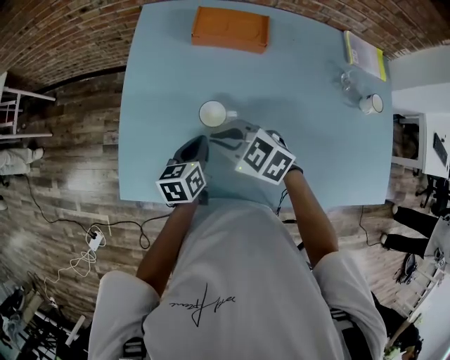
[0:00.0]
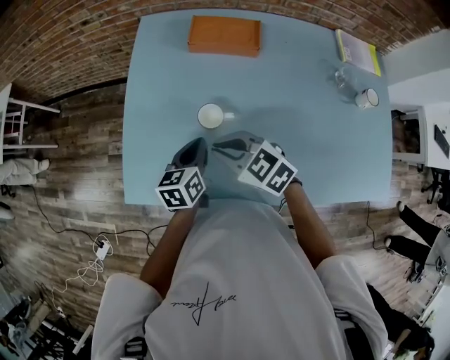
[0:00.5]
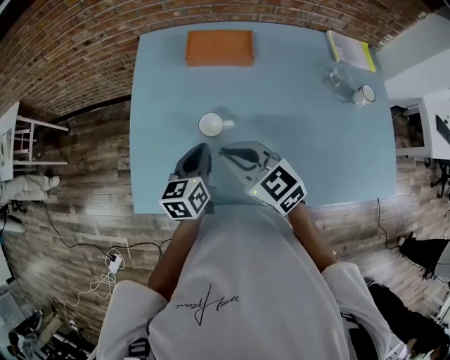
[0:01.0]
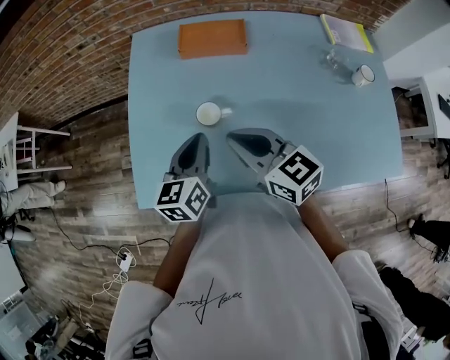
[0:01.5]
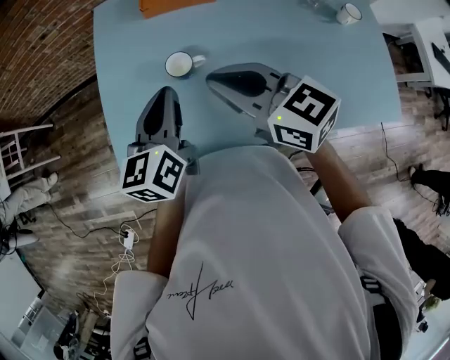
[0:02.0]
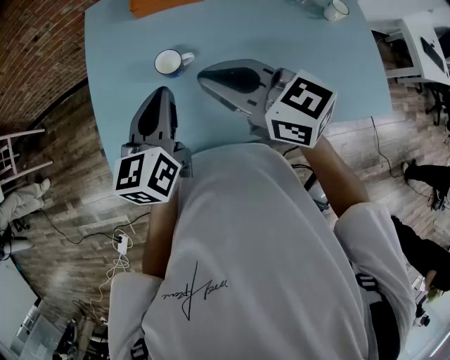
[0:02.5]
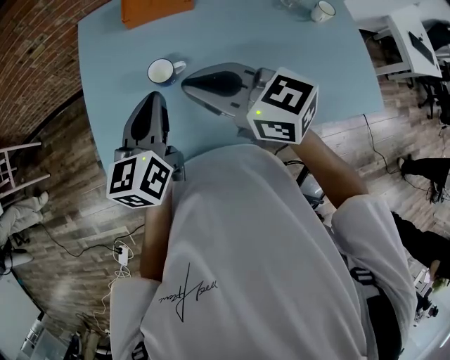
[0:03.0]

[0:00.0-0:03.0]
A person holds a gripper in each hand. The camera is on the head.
0:00.0 to 0:01.5: Both grippers travel together upward, approximately 10 cm. The right gripper rotates roughly 40 degrees.
0:01.5 to 0:03.0: The two grippers go about 5 cm upward.

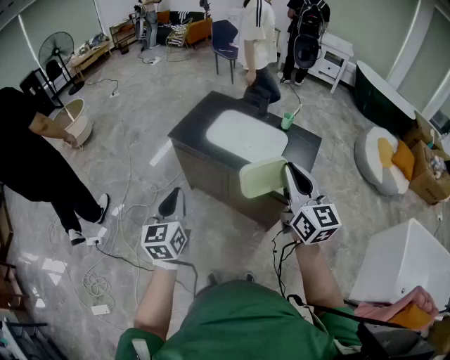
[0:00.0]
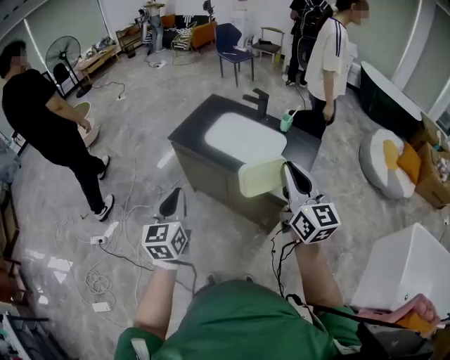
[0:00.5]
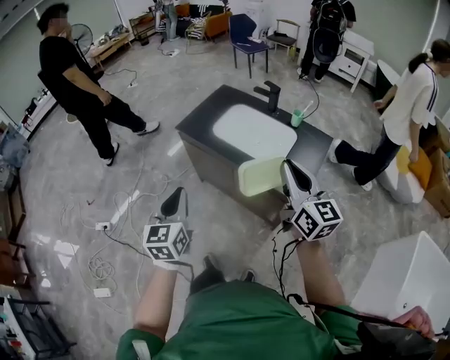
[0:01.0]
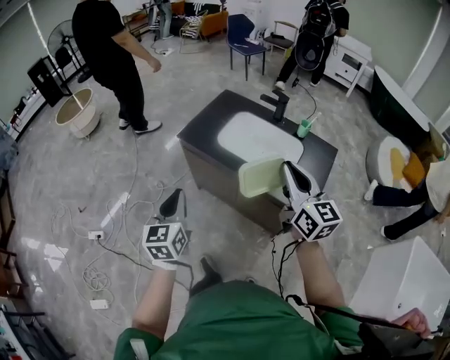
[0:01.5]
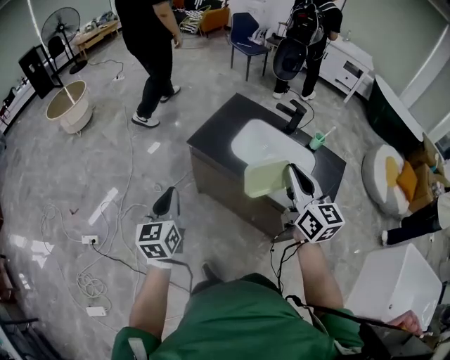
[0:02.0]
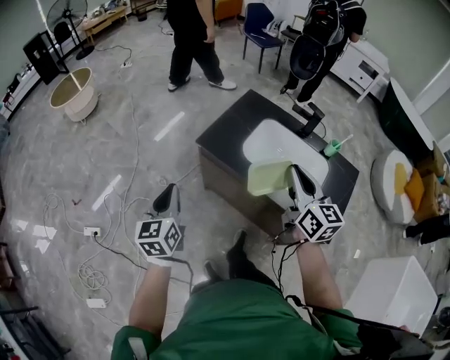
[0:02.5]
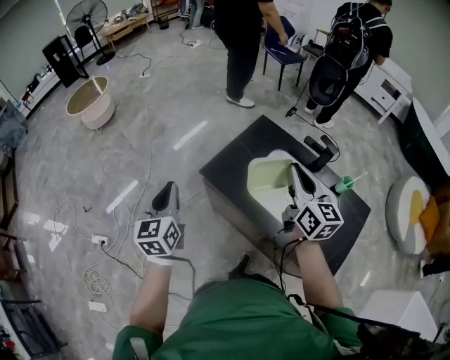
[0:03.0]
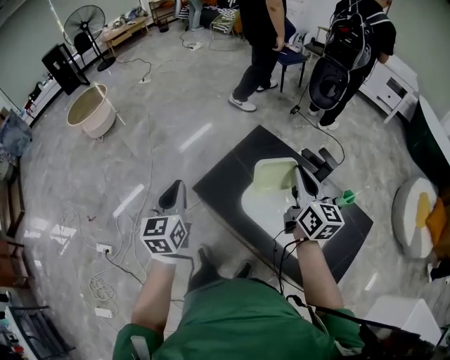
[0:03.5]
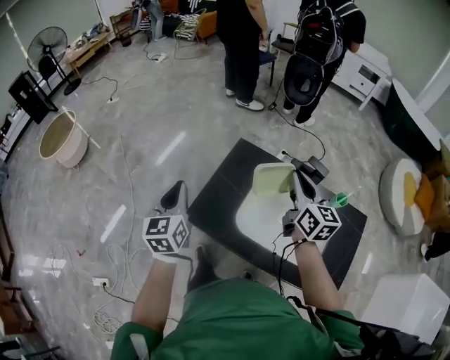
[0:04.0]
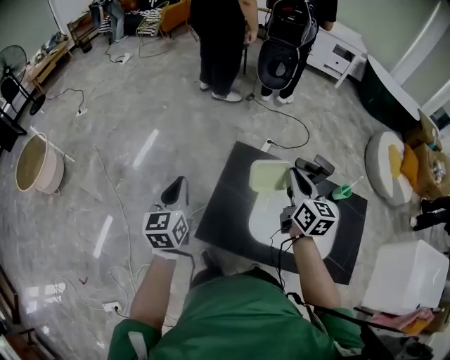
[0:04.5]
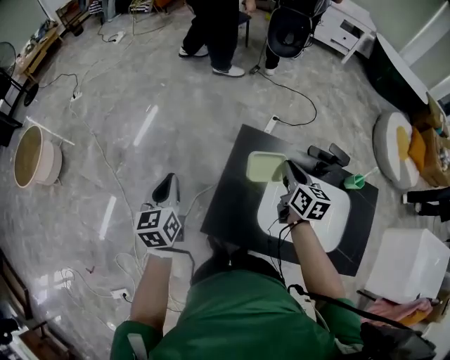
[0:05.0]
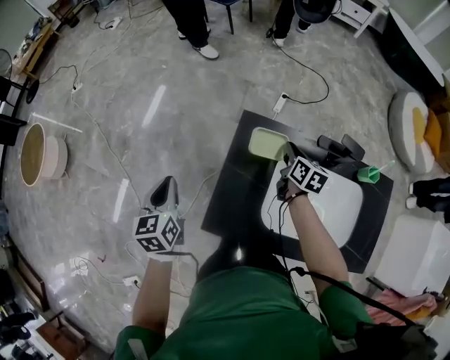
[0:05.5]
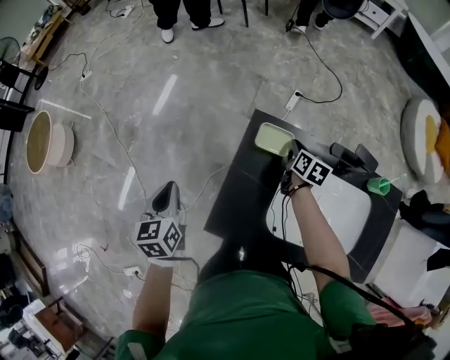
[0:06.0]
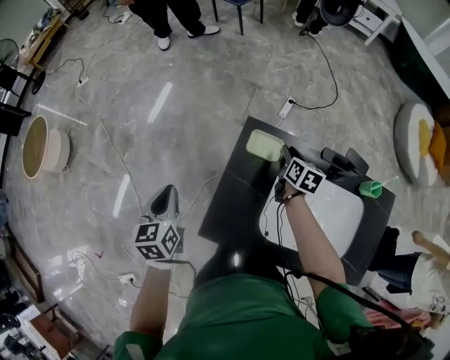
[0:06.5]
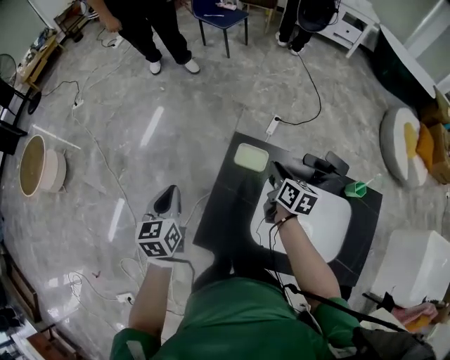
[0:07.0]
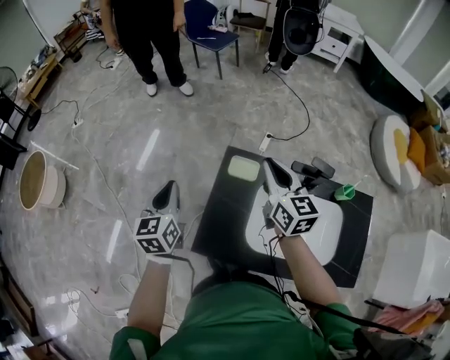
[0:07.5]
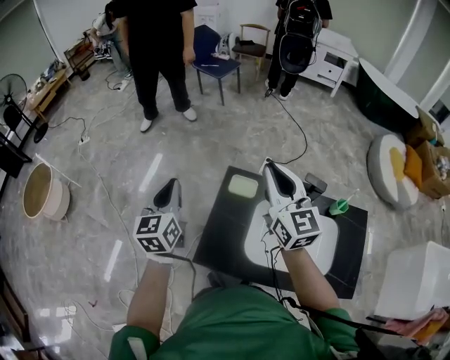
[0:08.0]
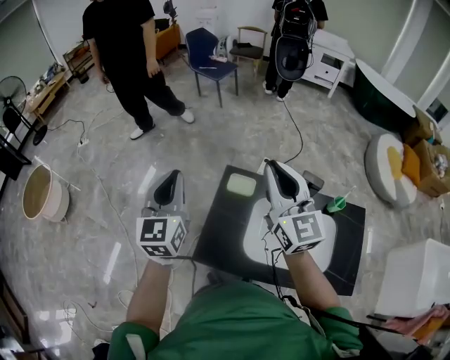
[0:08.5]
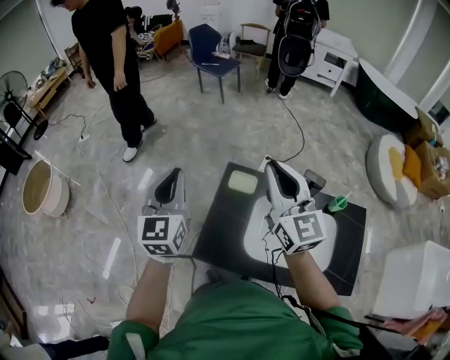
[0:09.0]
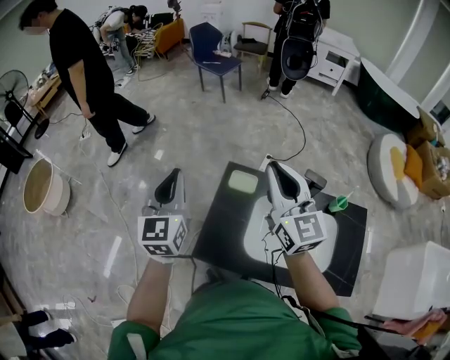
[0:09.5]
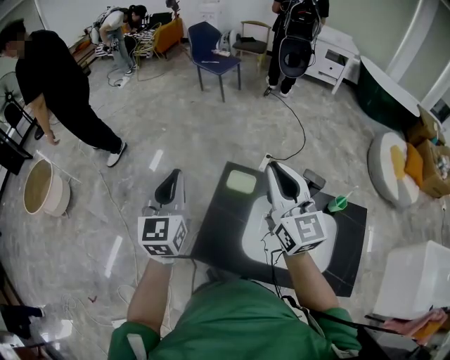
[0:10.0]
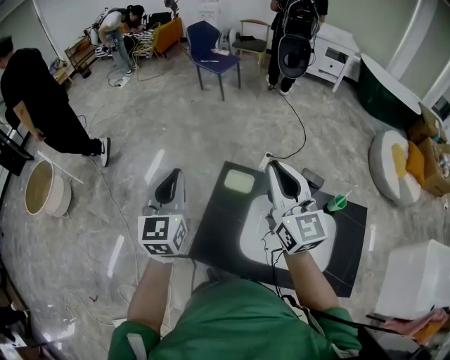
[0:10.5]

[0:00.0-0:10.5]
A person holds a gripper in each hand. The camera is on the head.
0:00.0 to 0:02.0: Both grippers move forward and to the left, approximately 25 cm.
0:02.0 to 0:04.0: The two grippers travel together, forward, about 50 cm.
0:04.0 to 0:06.5: The right gripper shifts some 40 cm downward and forward, and angles its fingers downward, by some 30 degrees. The left gripper goes some 30 cm forward, downward and to the left, and changes its angle by approximately 20 degrees.
0:06.5 to 0:08.5: The left gripper is displaced upward by about 25 cm, and tips its fingers upward by some 30 degrees. Meanwhile the right gripper moves upward and backward, about 50 cm, and angles its fingers upward, by about 40 degrees.
0:08.5 to 0:10.5: The grippers move only a little.

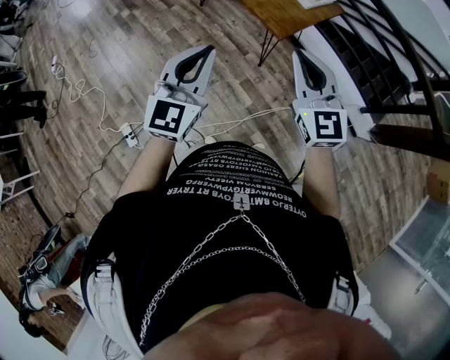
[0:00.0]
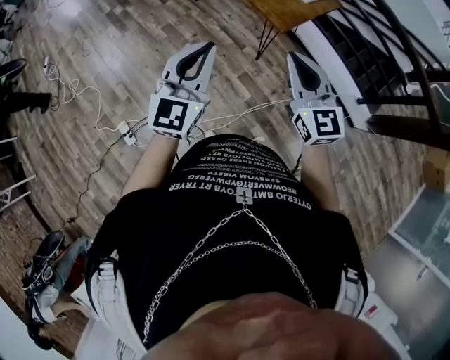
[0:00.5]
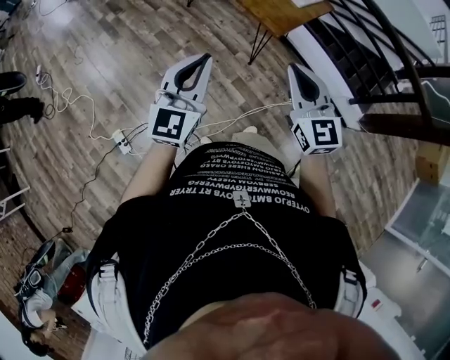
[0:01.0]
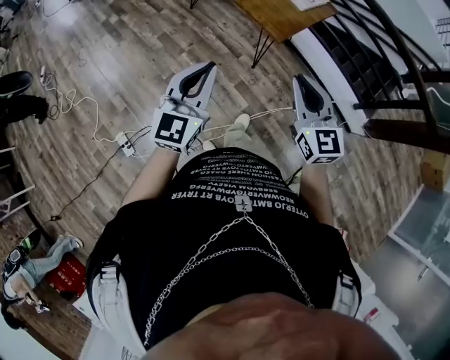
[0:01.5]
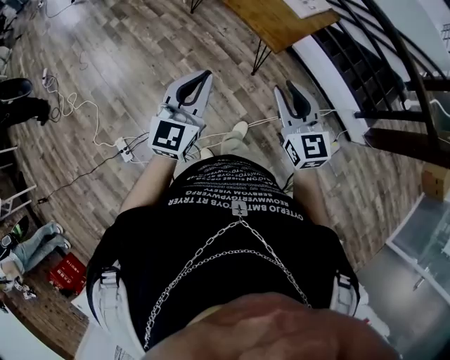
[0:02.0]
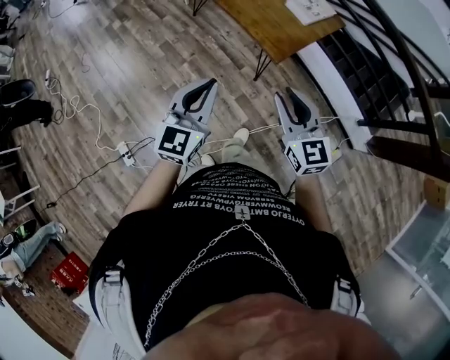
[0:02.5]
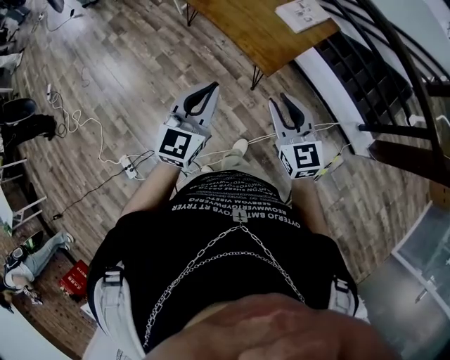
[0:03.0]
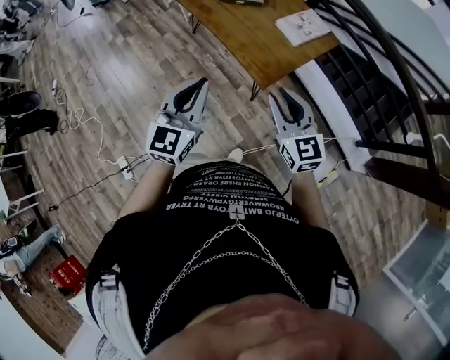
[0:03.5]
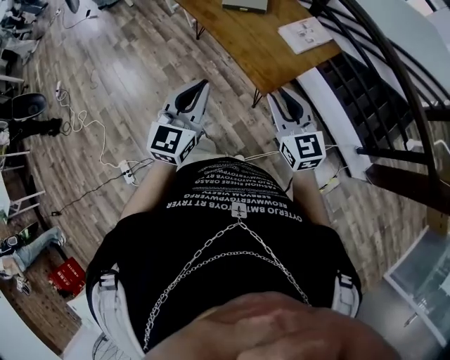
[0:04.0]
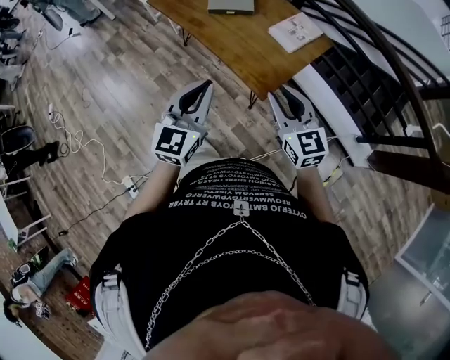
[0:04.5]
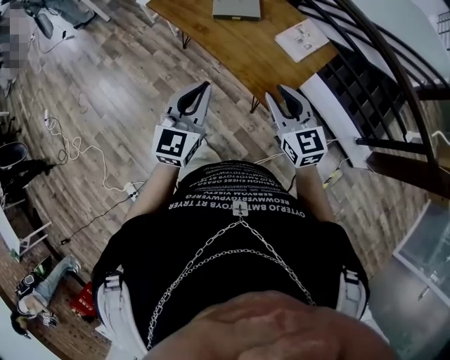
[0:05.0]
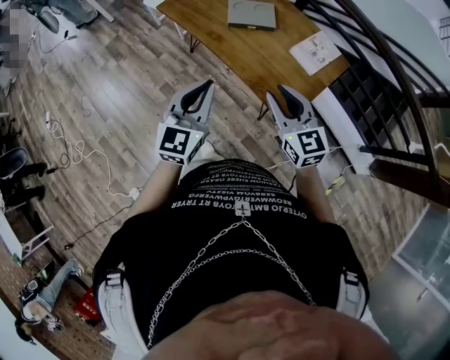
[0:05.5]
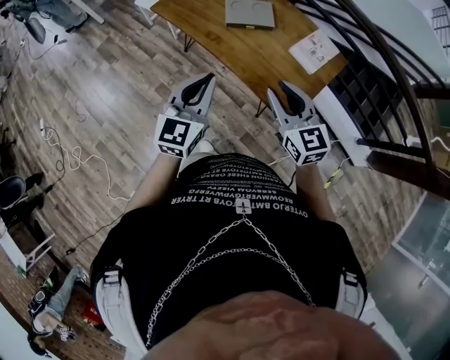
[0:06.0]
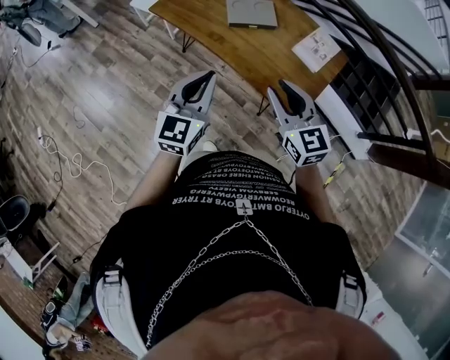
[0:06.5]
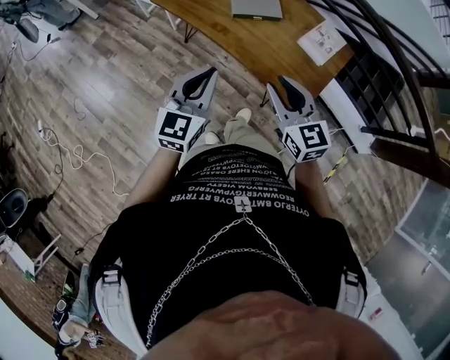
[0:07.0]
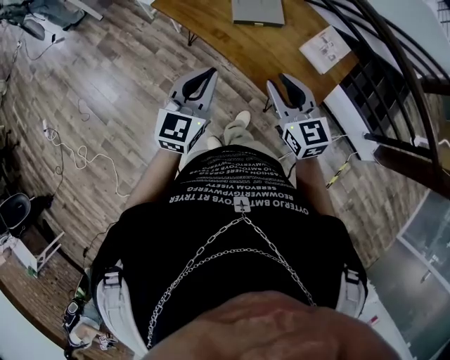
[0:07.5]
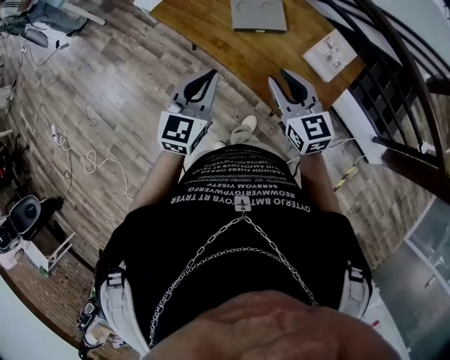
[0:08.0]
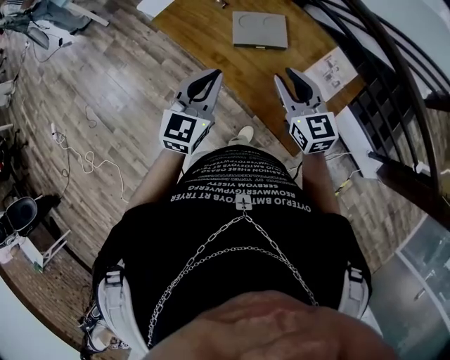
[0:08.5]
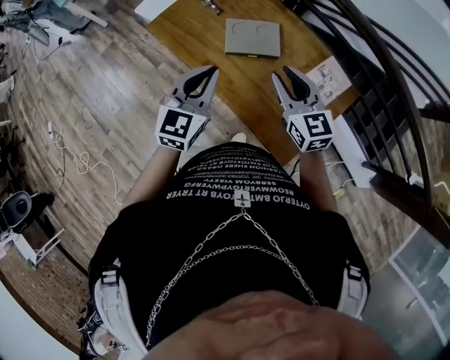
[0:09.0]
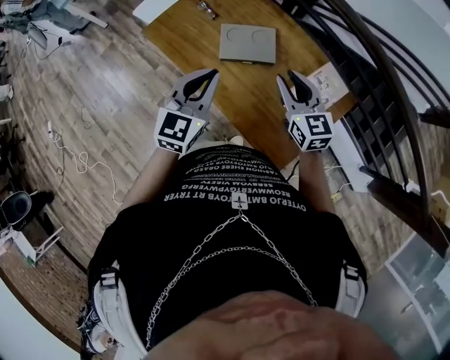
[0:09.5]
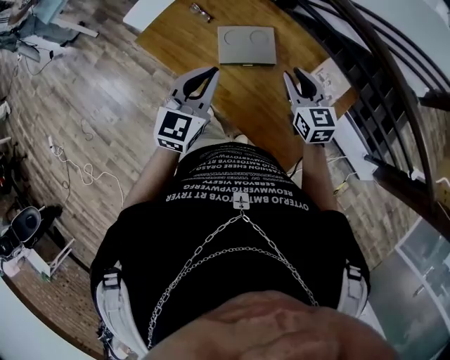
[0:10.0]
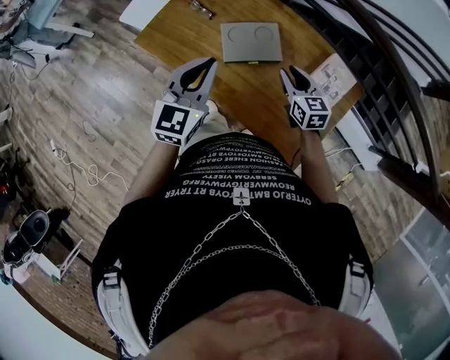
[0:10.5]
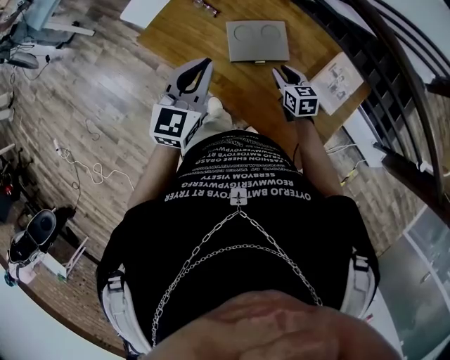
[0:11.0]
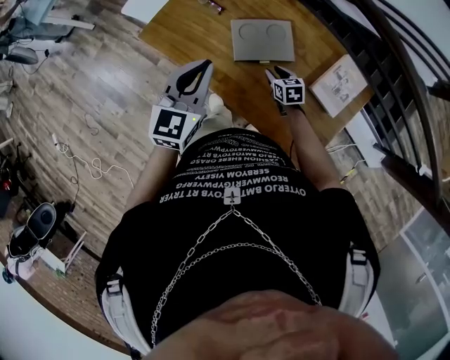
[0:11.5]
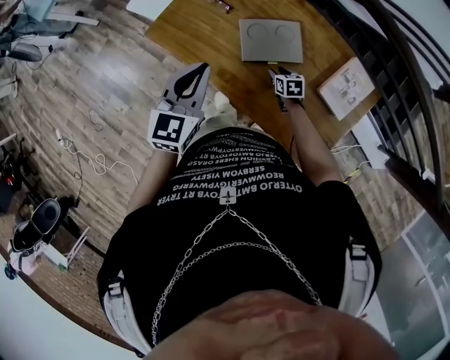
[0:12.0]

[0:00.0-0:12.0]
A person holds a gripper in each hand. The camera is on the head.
0:00.0 to 0:02.0: The right gripper travels downward by some 10 cm, and opens; the left gripper is displaced downward and forward by some 10 cm.
0:02.0 to 0:04.0: Both grippers travel together forward and to the right, approximately 20 cm.
0:04.0 to 0:06.0: Both grippers travel together forward and to the left, roughly 30 cm.
0:06.0 to 0:08.0: The grippers both shift forward by about 15 cm.
0:08.0 to 0:10.0: The left gripper goes about 20 cm forward. Meanwhile the right gripper is displaced forward and to the right by roughly 25 cm.
0:10.0 to 0:12.0: The left gripper heads to the left and forward, covering roughly 10 cm, while the right gripper goes some 35 cm downward, and angles its fingers downward, by approximately 30 degrees.

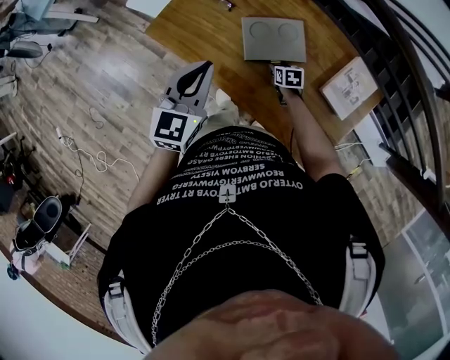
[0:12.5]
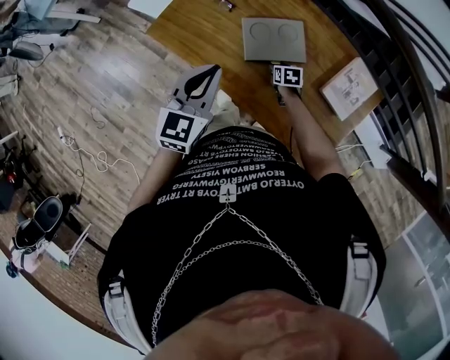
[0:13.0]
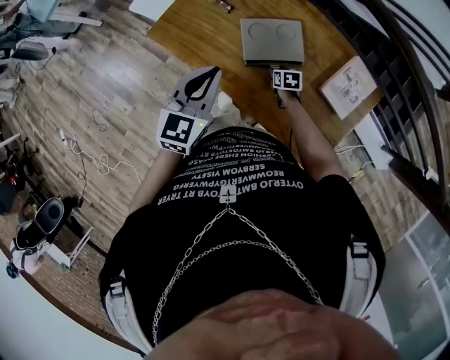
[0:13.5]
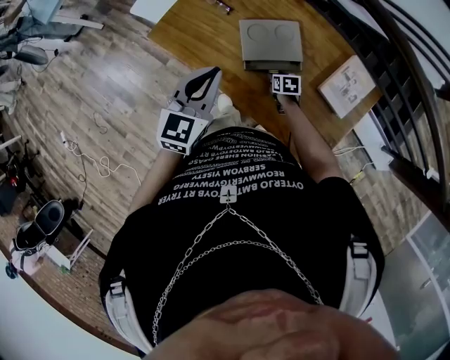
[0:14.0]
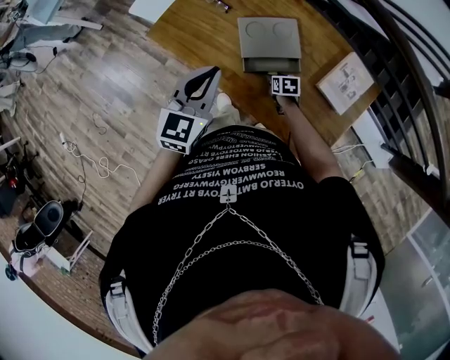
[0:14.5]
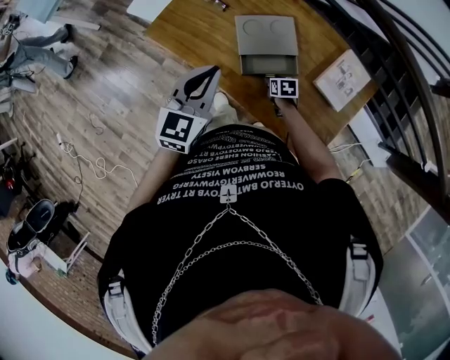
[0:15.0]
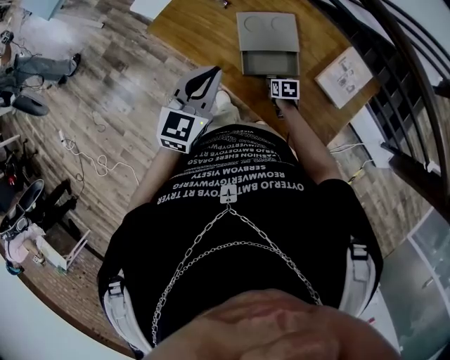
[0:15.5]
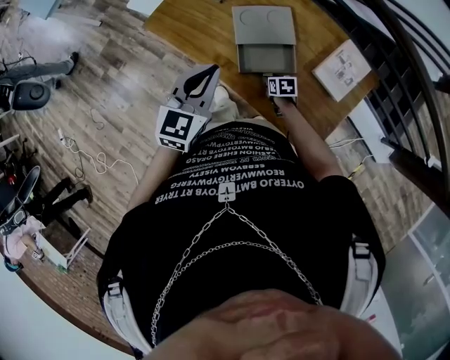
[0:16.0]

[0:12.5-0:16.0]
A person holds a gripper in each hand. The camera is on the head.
0:12.5 to 0:14.5: The right gripper travels backward by approximately 5 cm. The left gripper ends up some 5 cm from where it was.
0:14.5 to 0:16.0: Both grippers travel together backward, some 5 cm.
